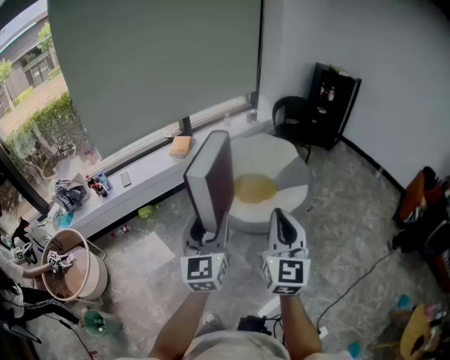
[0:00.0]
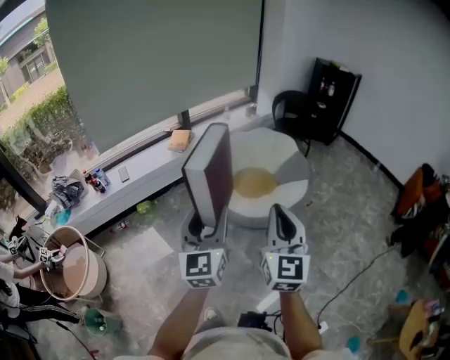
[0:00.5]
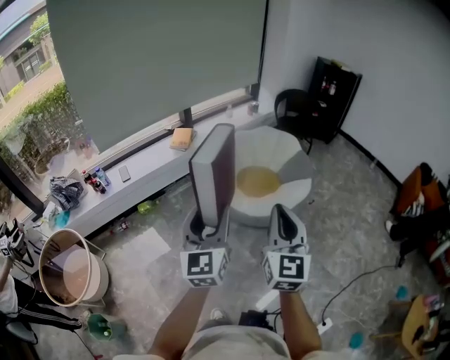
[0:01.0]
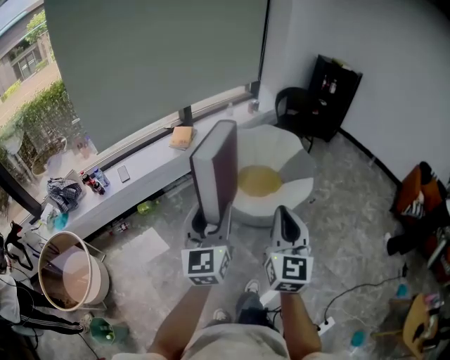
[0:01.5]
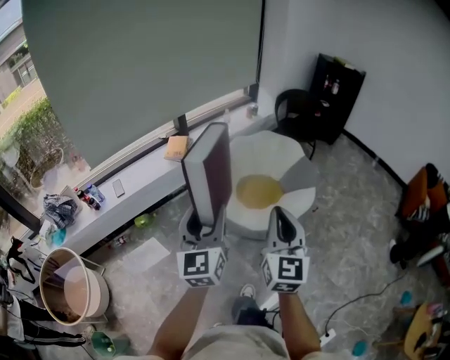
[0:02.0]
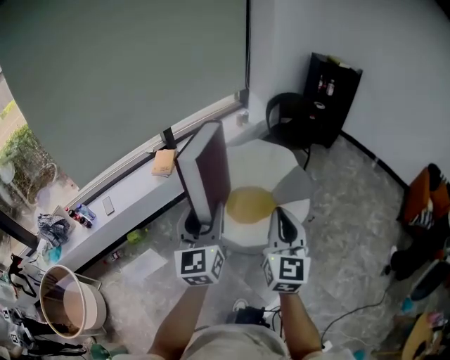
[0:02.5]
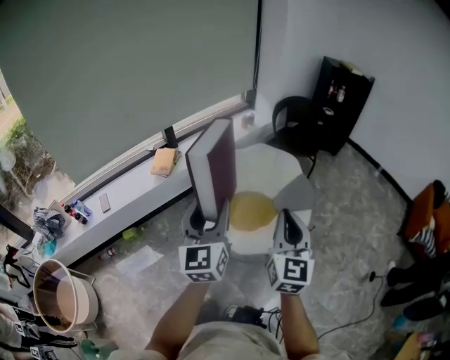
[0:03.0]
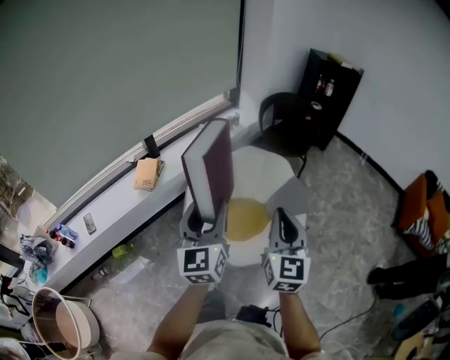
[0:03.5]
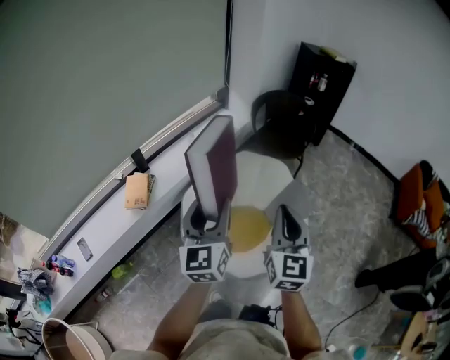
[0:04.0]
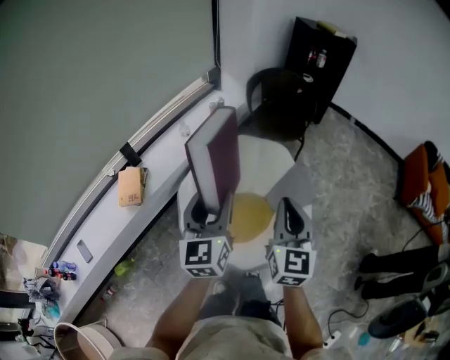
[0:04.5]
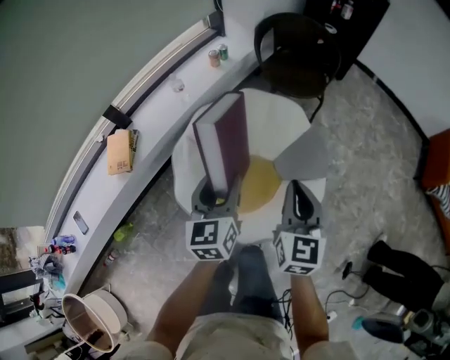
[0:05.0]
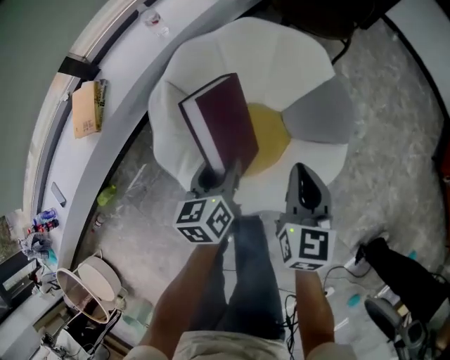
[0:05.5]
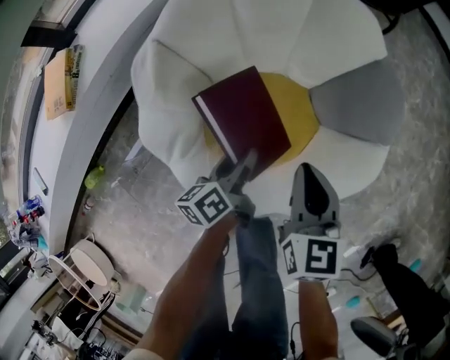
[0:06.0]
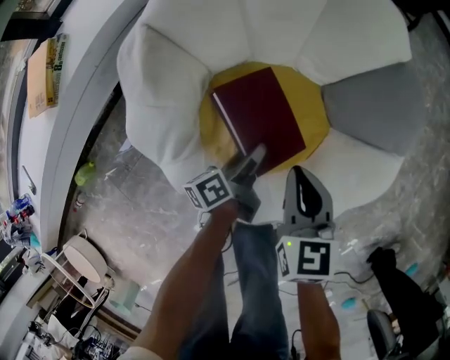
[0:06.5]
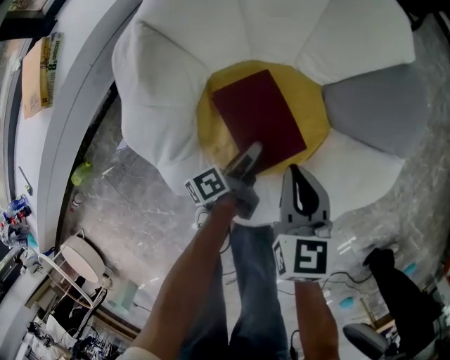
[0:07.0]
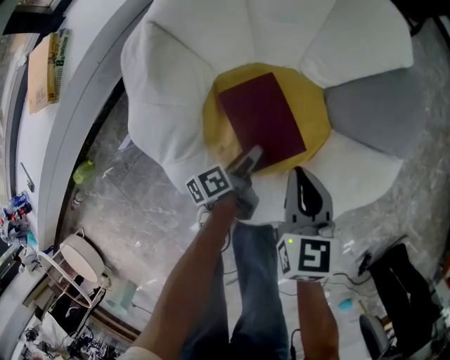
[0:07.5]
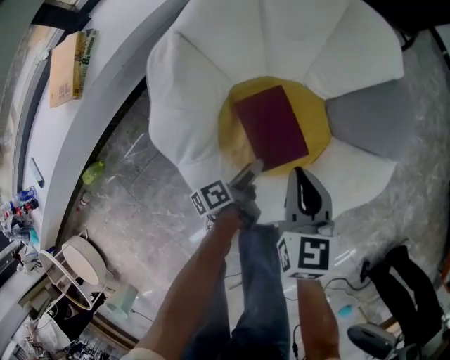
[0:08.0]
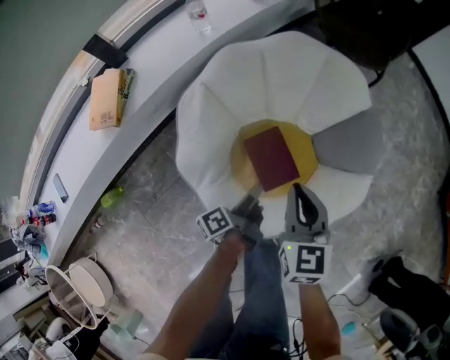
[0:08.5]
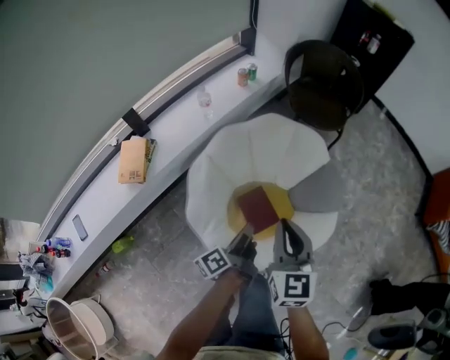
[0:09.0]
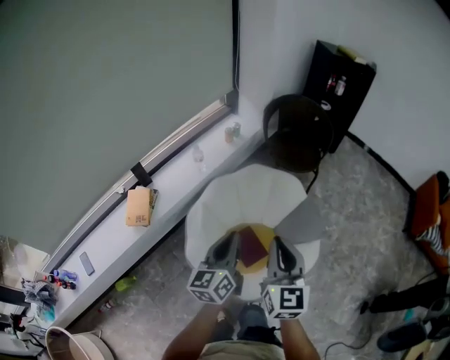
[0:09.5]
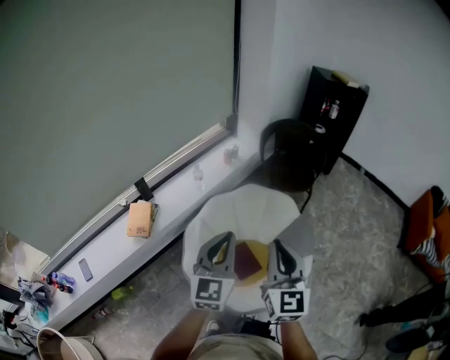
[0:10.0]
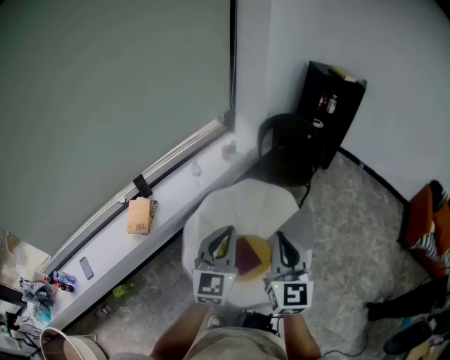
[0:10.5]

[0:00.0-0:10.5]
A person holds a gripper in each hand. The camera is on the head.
0:00.0 to 0:02.0: The two grippers go about 20 cm forward and to the left.
0:02.0 to 0:04.0: The two grippers travel together, forward, some 50 cm.
0:04.0 to 0:06.5: The two grippers go about 70 cm downward. The left gripper rotates around the line of its fingers by about 70 degrees, counterclockwise from behind. The right gripper points its fingers about 40 degrees further downward.
0:06.5 to 0:08.5: Both grippers move upward, about 20 cm. The left gripper changes its angle by roughly 20 degrees.
0:08.5 to 0:10.5: Both grippers travel together upward, approximately 50 cm. The left gripper rolls clockwise, seen from behind, by roughly 100 degrees, and closes its fingers. The right gripper swivels some 30 degrees.

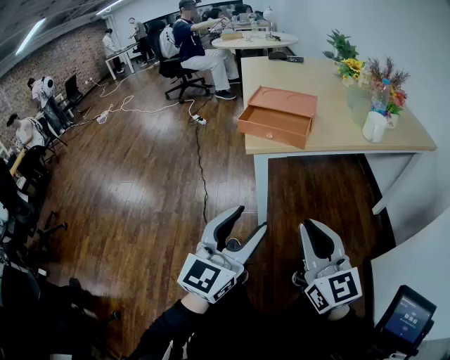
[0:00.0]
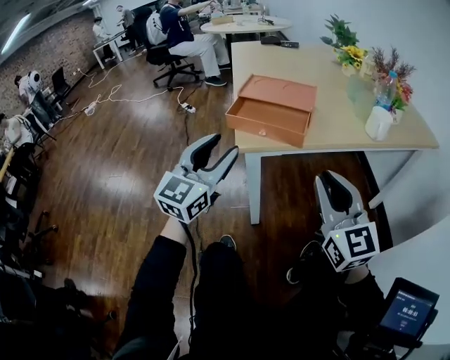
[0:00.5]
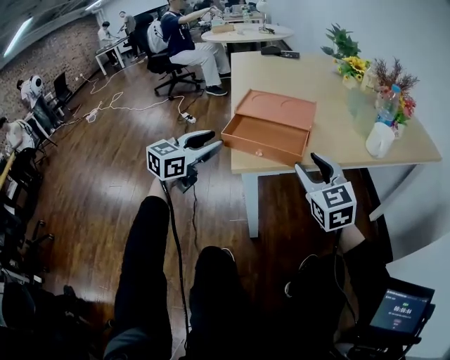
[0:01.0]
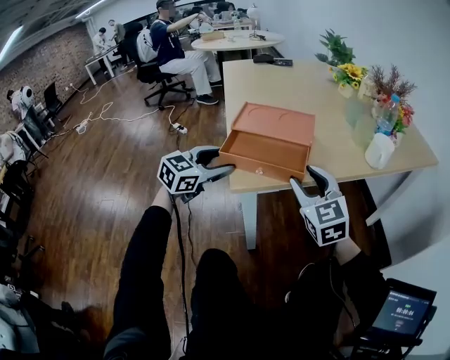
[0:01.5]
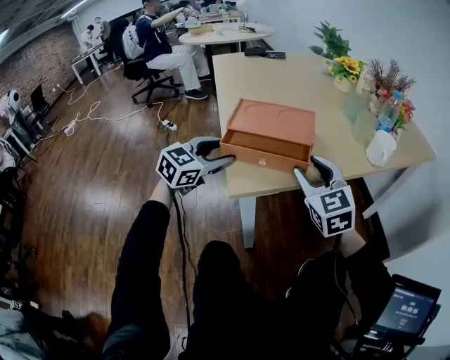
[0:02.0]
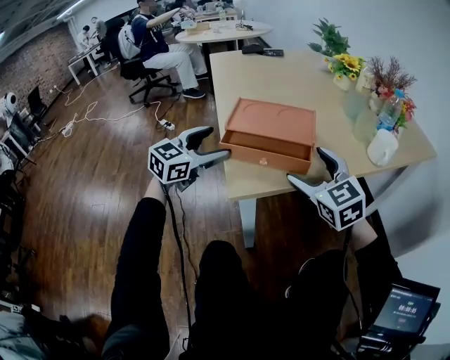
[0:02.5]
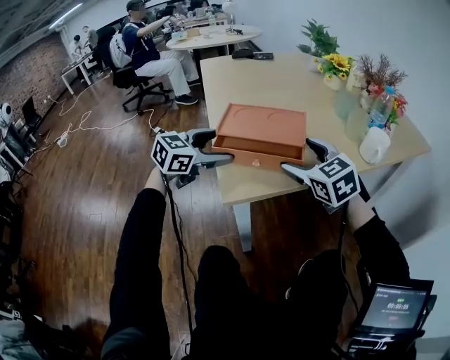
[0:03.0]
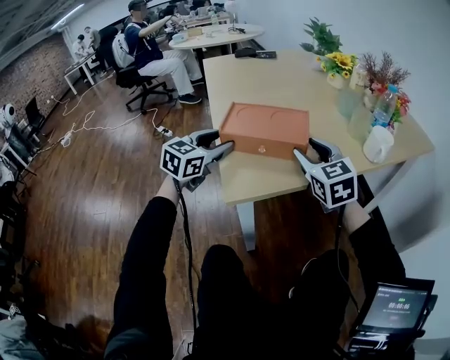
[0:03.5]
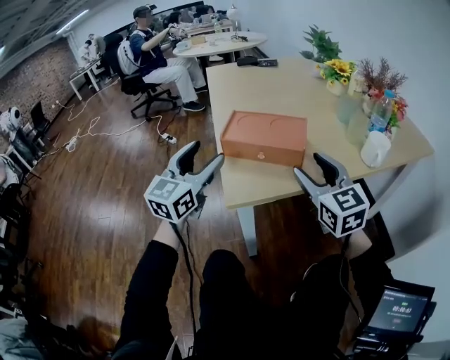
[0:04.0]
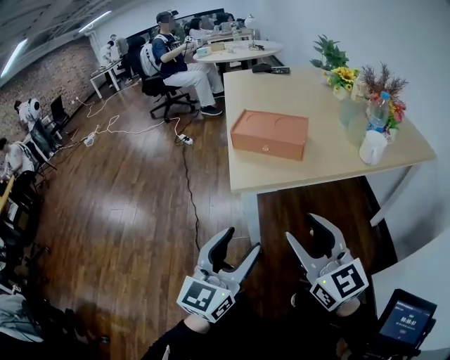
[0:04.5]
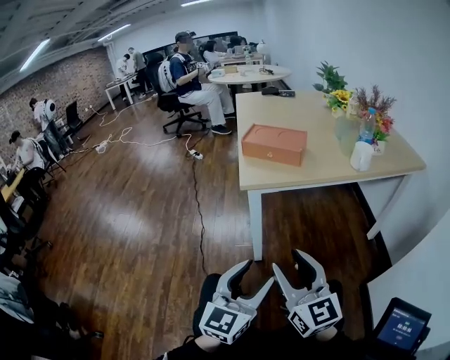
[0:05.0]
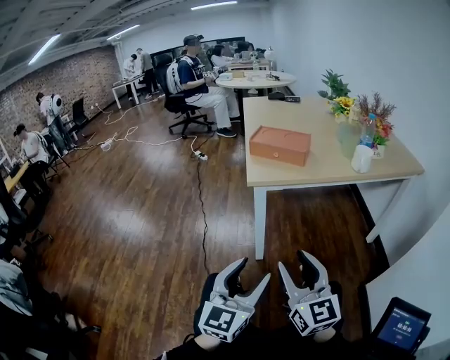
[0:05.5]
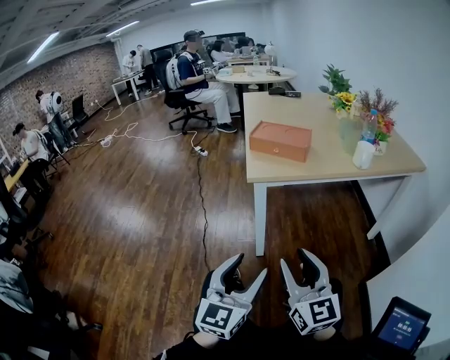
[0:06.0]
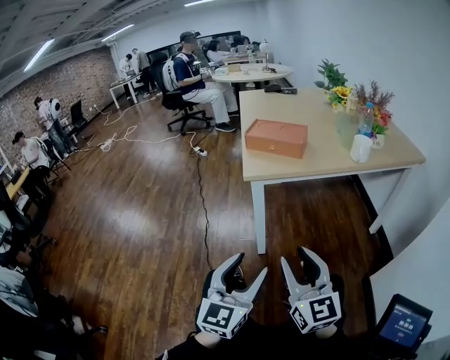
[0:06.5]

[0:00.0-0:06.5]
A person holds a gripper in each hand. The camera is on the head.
0:00.0 to 0:02.0: The grippers both shift forward by some 35 cm. The left gripper changes its angle by about 40 degrees, while the right gripper turns by approximately 30 degrees, and opens its fingers.
0:02.0 to 0:04.5: The left gripper heads backward and to the right, covering roughly 30 cm, and rotates roughly 40 degrees; the right gripper goes roughly 20 cm backward, swivels roughly 30 degrees, and opens, then closes once more.
0:04.5 to 0:06.5: Both grippers move backward, about 15 cm.

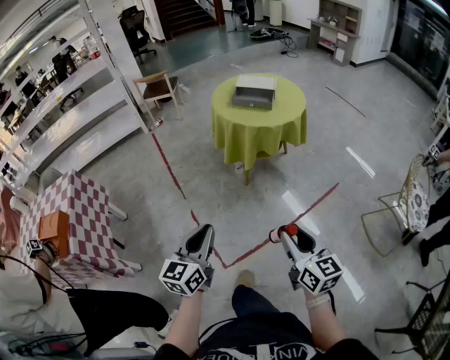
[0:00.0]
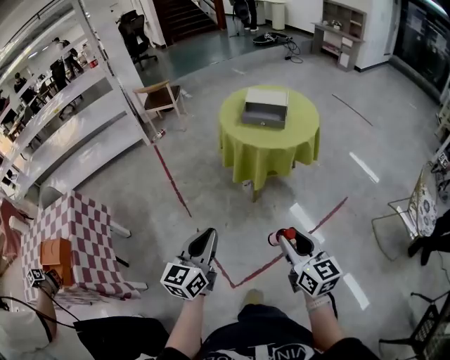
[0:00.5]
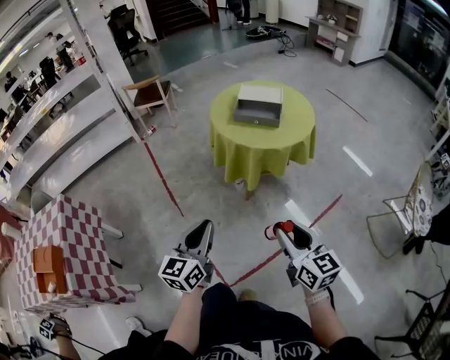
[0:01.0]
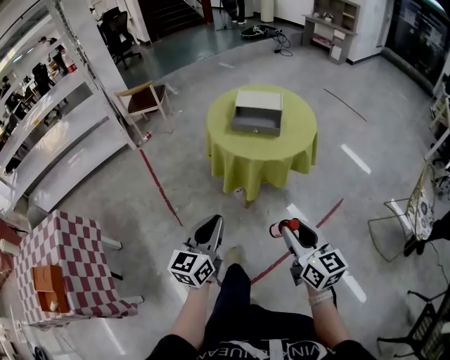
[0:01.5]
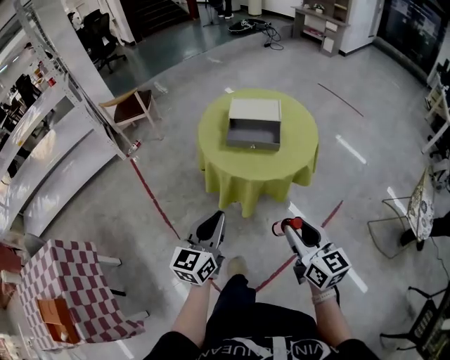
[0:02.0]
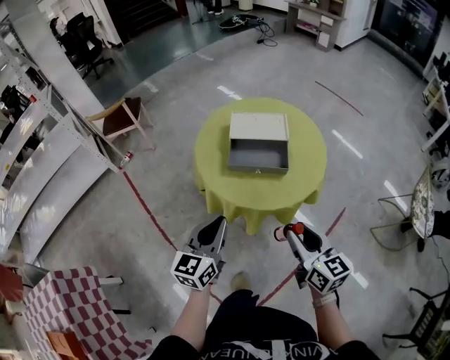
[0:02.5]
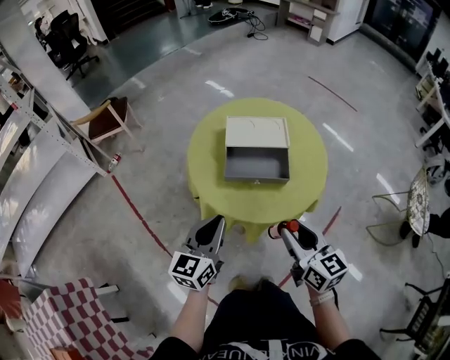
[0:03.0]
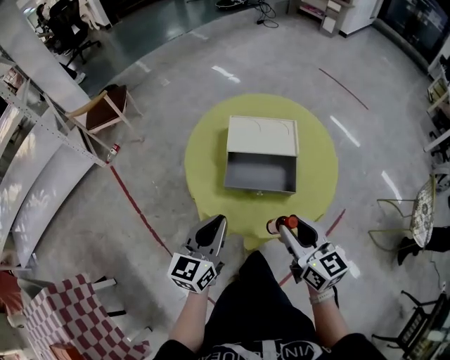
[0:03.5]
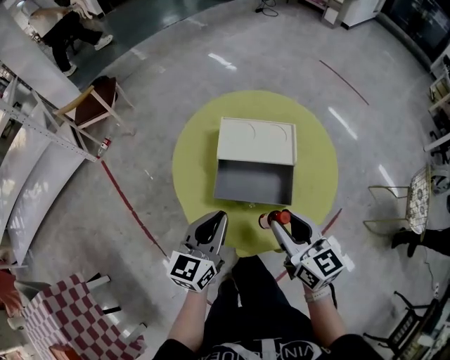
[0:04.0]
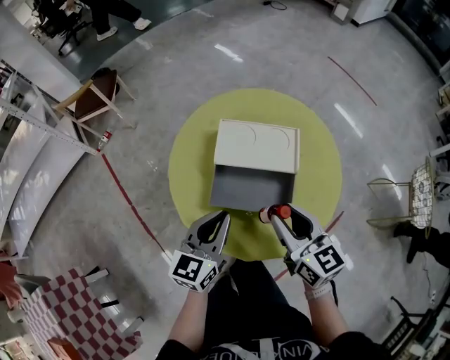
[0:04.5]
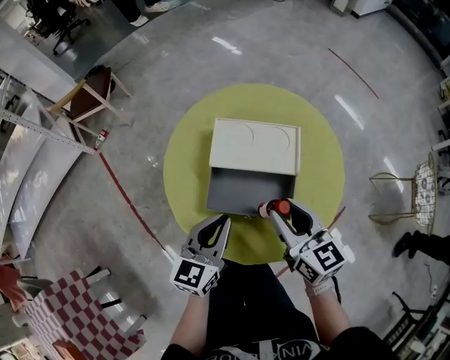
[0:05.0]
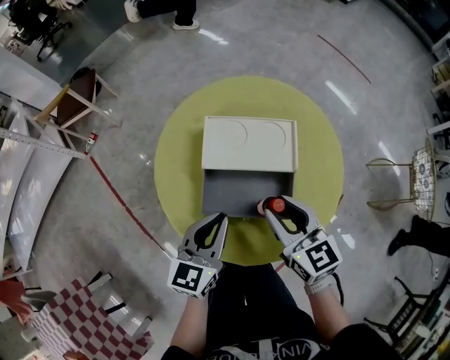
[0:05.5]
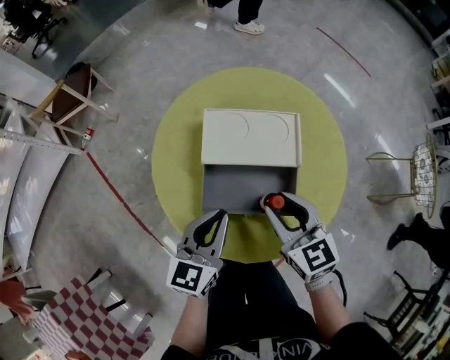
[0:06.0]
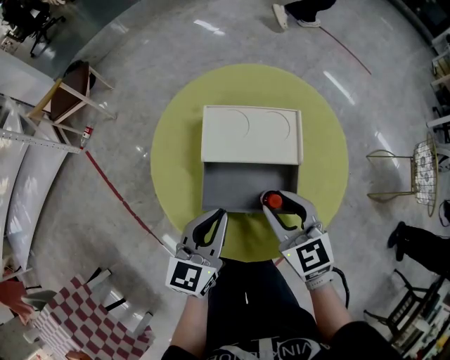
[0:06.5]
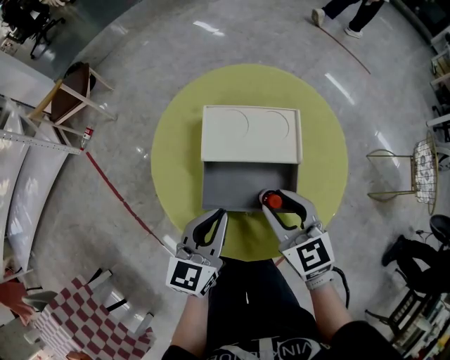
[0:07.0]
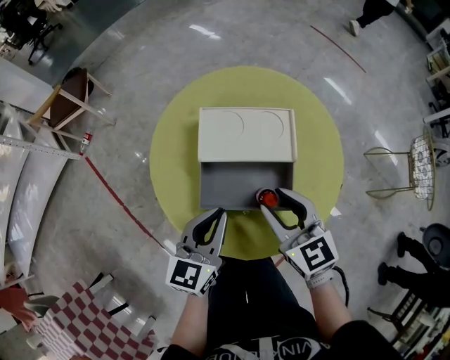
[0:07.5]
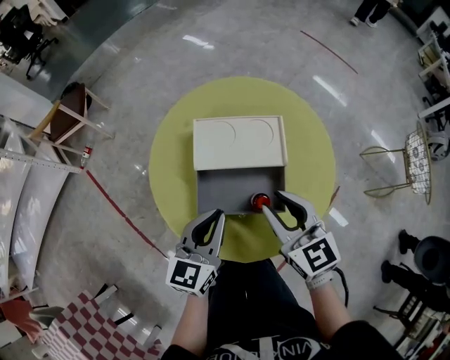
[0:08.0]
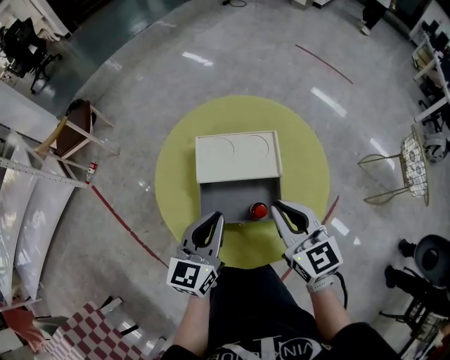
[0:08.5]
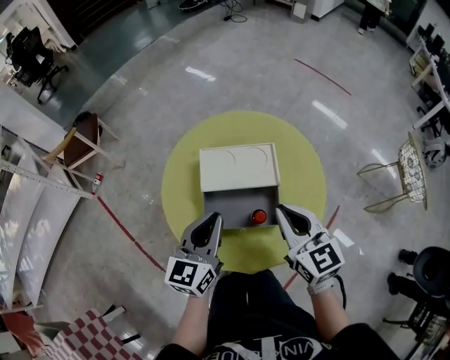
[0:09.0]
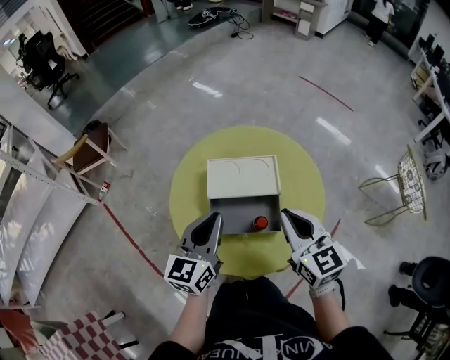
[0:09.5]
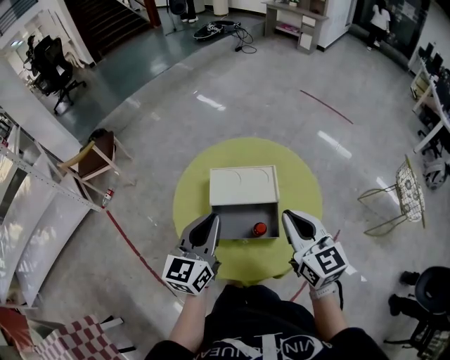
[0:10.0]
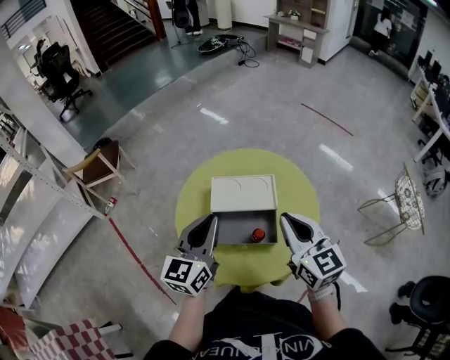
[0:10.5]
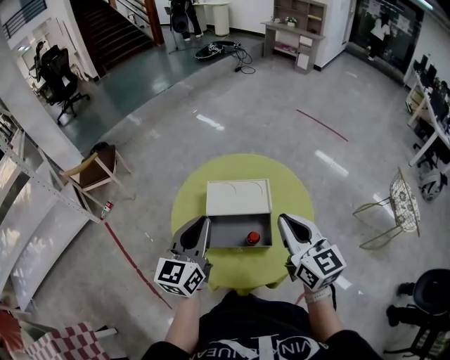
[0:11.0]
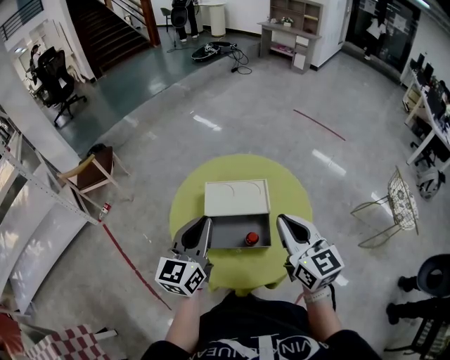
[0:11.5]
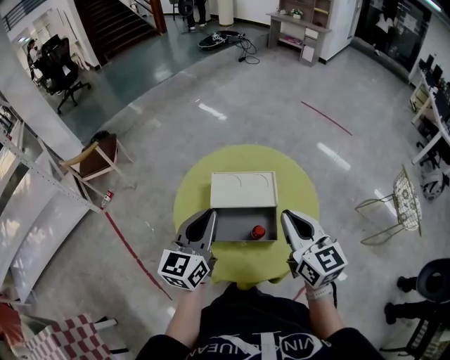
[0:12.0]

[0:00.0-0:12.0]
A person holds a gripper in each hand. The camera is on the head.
0:00.0 to 0:02.0: The grippers both shift forward by some 40 cm.
0:02.0 to 0:04.0: Both grippers move forward, approximately 30 cm.
0:04.0 to 0:06.0: The left gripper is displaced forward by some 5 cm, while the right gripper travels forward and downward by about 10 cm.
0:06.0 to 0:08.0: The grippers move only a little.
0:08.0 to 0:10.0: The two grippers go roughly 10 cm upward. The right gripper closes.
0:10.0 to 0:12.0: The grippers make only small movements.
